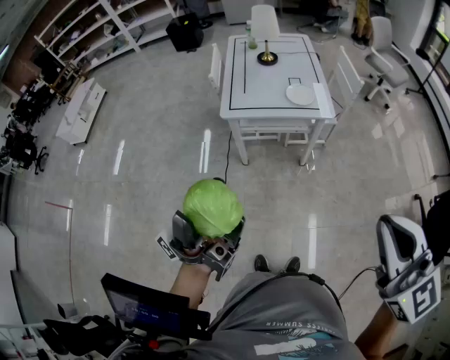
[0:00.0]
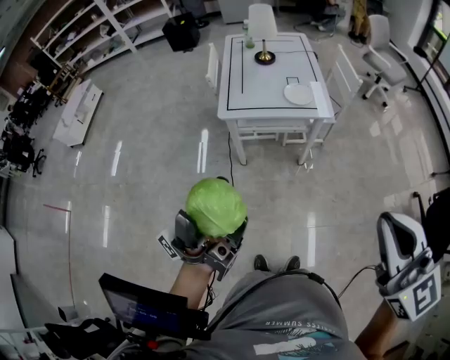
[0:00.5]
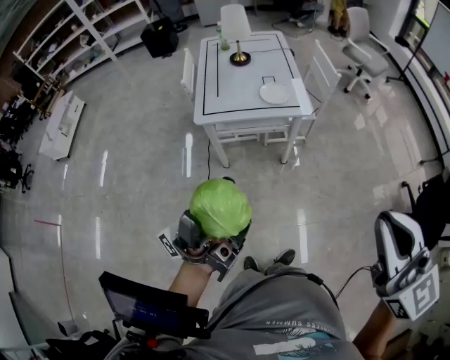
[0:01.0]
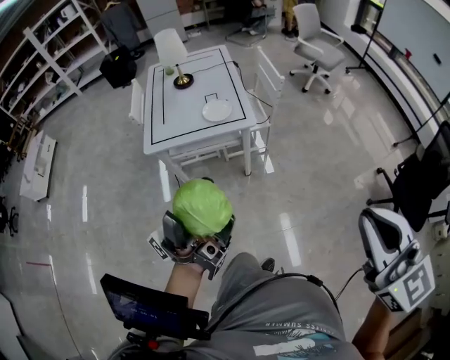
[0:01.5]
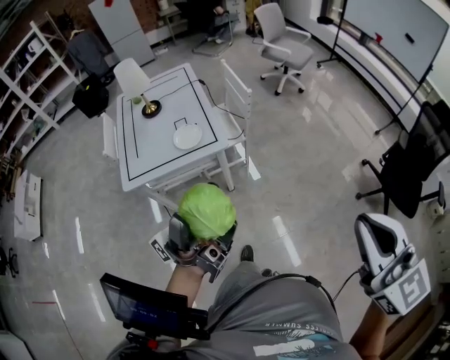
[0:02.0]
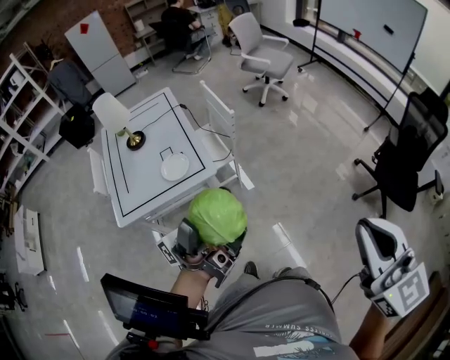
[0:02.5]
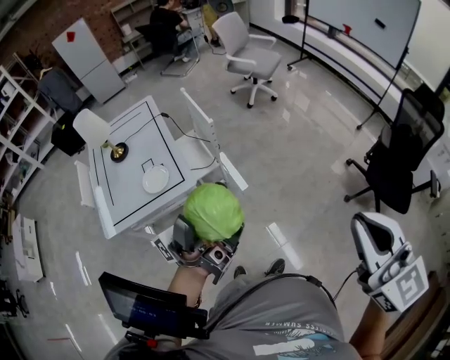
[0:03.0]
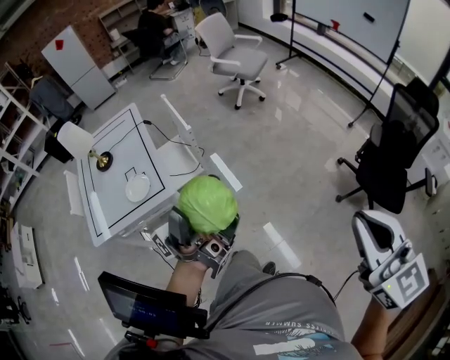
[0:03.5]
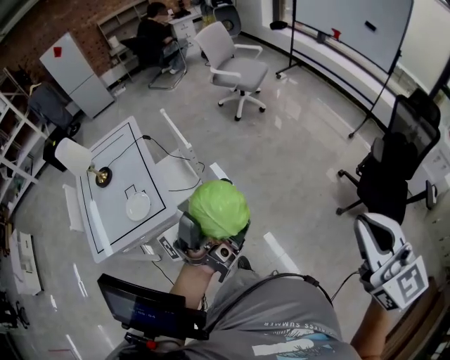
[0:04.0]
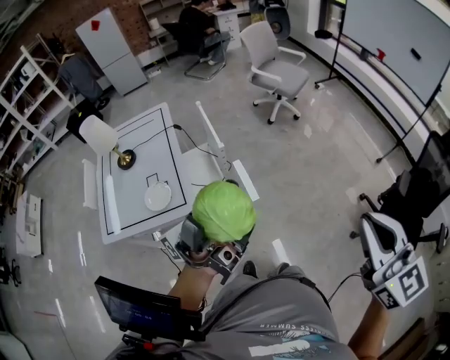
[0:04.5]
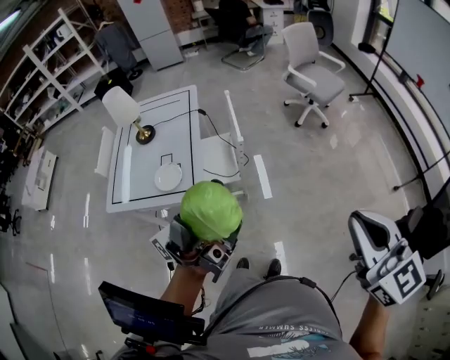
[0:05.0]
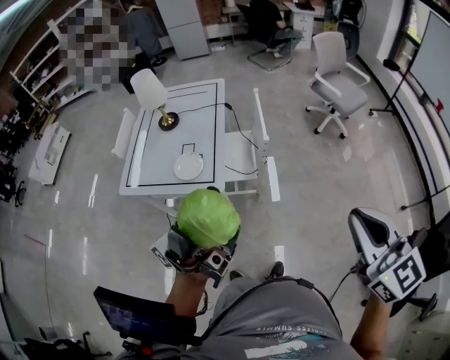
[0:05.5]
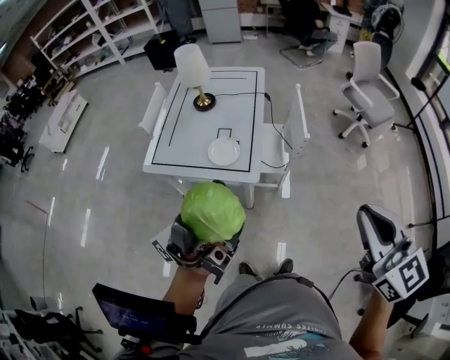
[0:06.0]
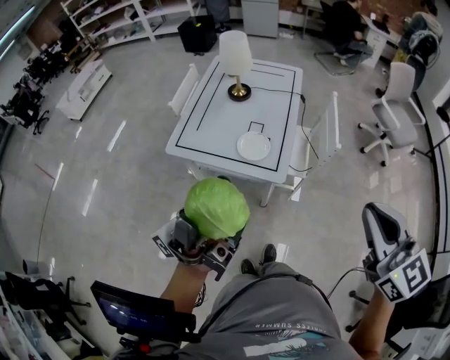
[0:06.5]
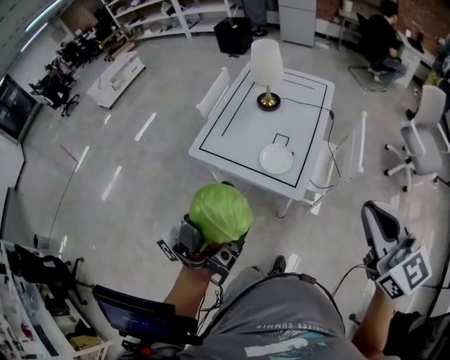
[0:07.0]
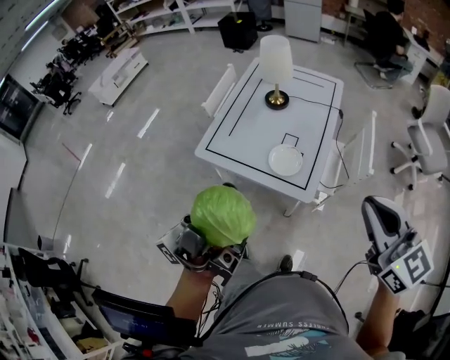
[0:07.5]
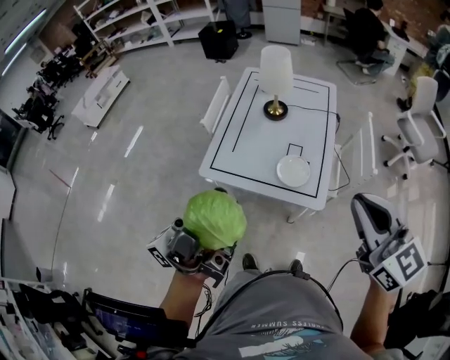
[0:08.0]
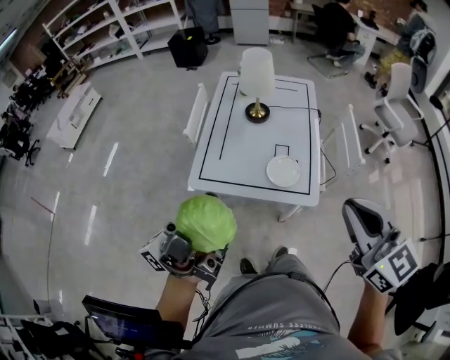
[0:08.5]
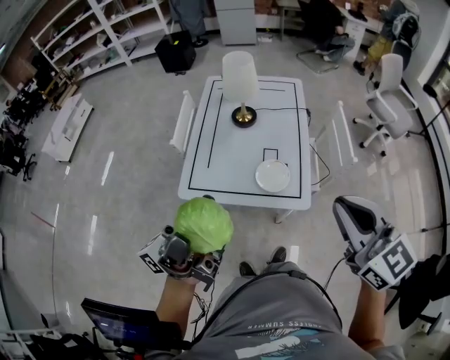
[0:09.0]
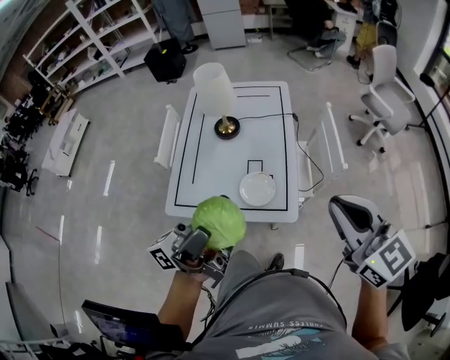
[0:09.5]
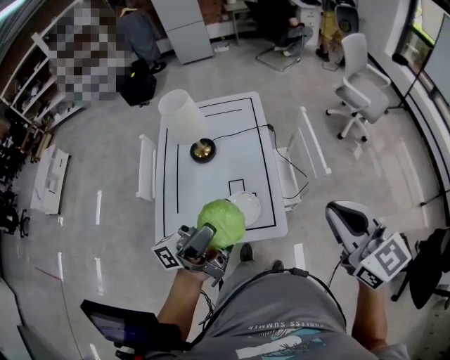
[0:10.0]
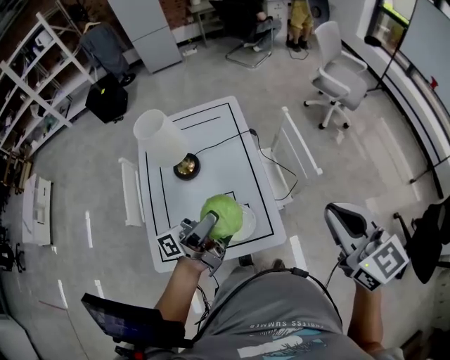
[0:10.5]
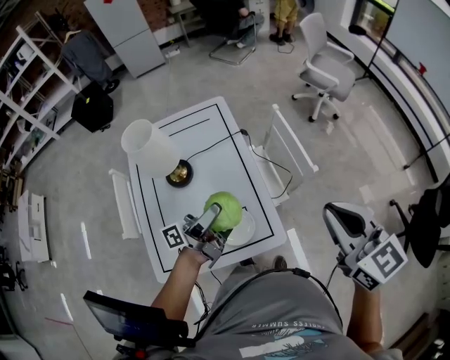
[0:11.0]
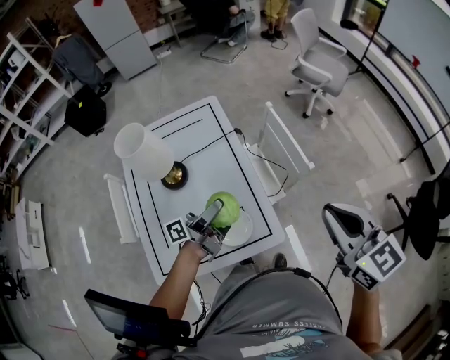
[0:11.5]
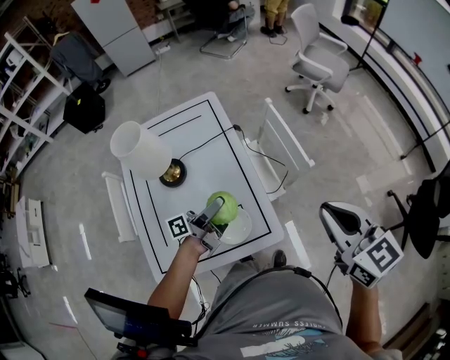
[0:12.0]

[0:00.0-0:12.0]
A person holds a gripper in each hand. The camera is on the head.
0:00.0 to 0:02.0: The right gripper shifts by roughly 25 cm, and changes its angle by some 20 degrees.
0:02.0 to 0:04.0: The right gripper ends up some 30 cm from where it was.
0:04.0 to 0:06.0: The right gripper moves roughly 25 cm, and rotates about 40 degrees.
0:06.0 to 0:08.0: The right gripper shifts by approximately 30 cm.
0:08.0 to 0:10.0: The right gripper shifts by roughly 15 cm.
0:10.0 to 0:12.0: The right gripper ends up approximately 5 cm from where it was, and rotates about 20 degrees.

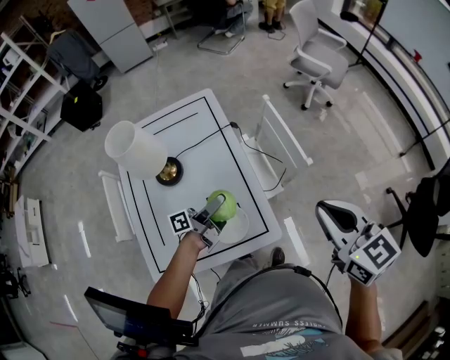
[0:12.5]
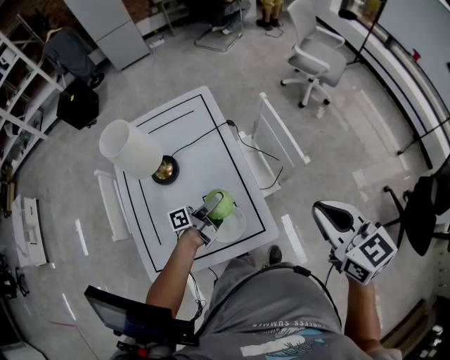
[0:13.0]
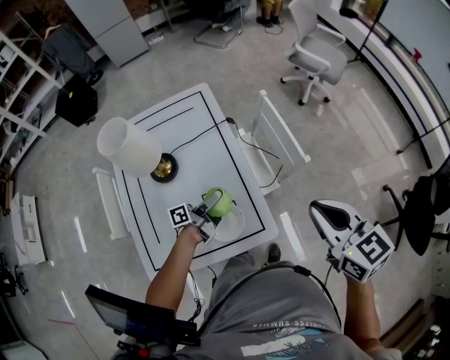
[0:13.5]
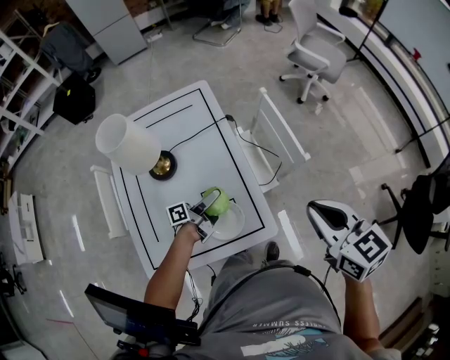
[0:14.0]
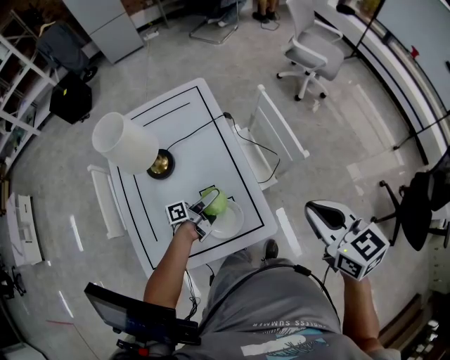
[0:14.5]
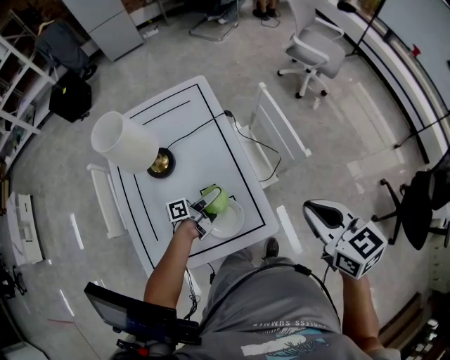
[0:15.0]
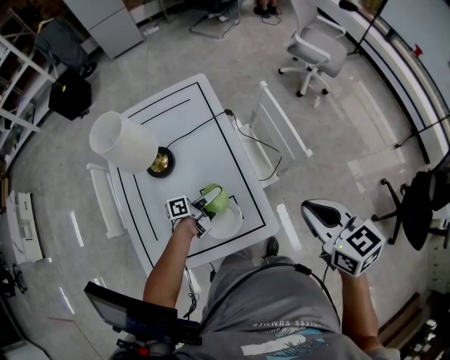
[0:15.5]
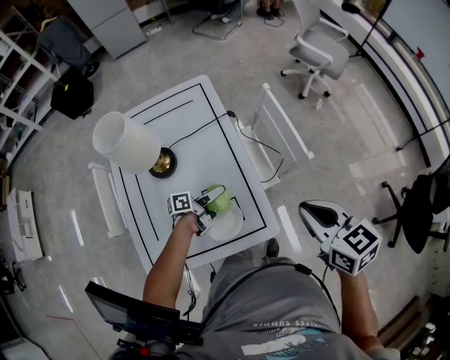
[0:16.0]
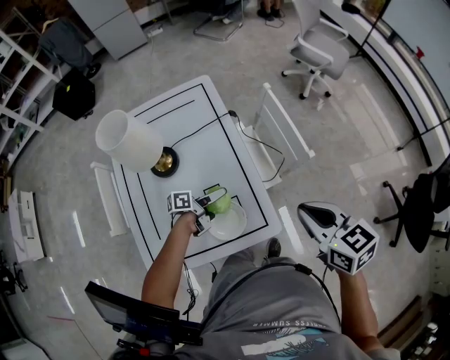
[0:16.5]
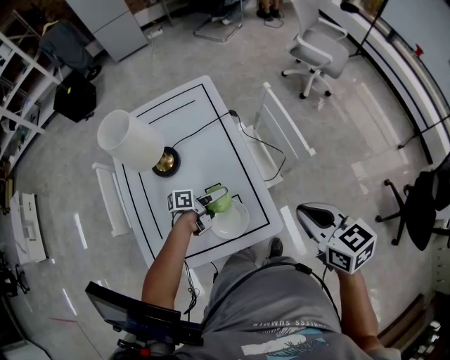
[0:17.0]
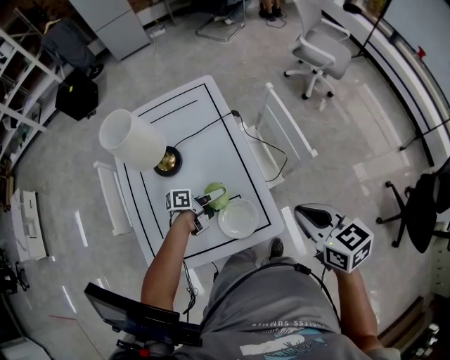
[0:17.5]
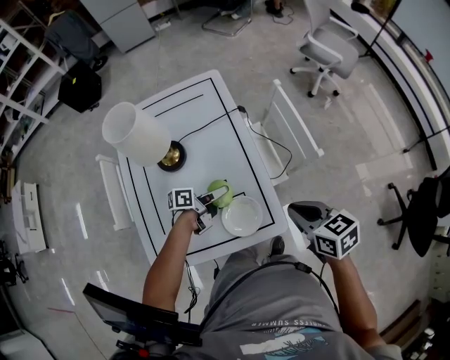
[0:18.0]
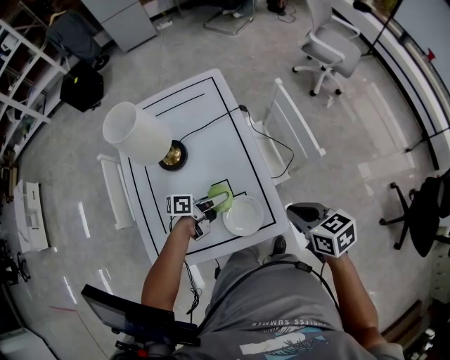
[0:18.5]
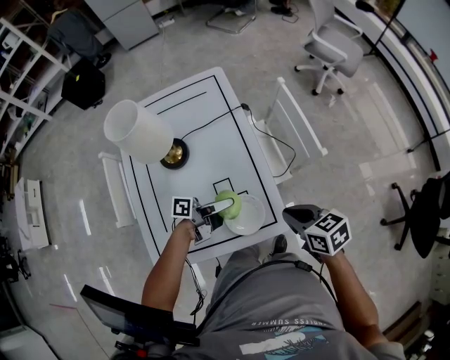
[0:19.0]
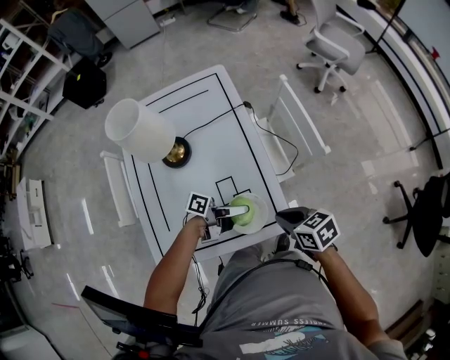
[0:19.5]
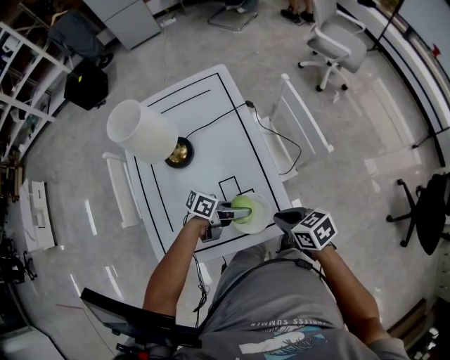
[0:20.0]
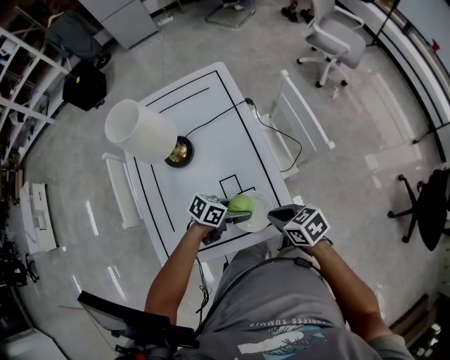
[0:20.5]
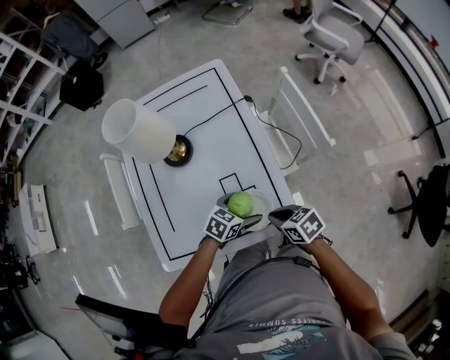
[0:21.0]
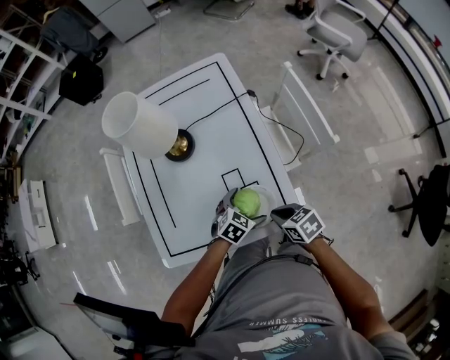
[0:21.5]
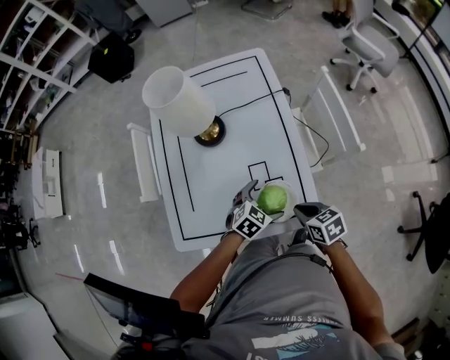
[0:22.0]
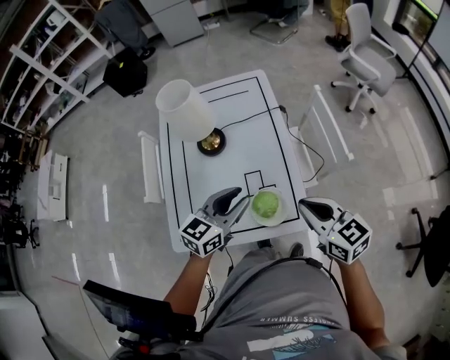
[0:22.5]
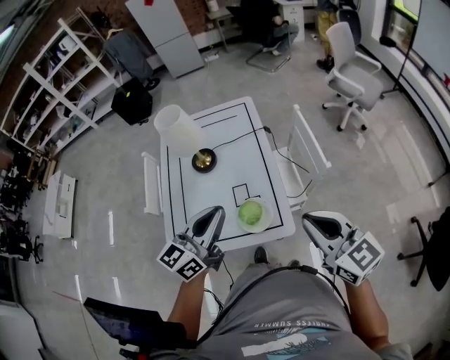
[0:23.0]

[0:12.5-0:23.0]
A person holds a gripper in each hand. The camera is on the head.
0:16.5 to 0:19.0: The right gripper shifts roughly 10 cm downward.
0:19.0 to 0:21.0: The right gripper is displaced downward by roughly 10 cm.
0:21.0 to 0:23.0: The right gripper heads upward, covering about 30 cm, and points its fingers about 40 degrees further upward.

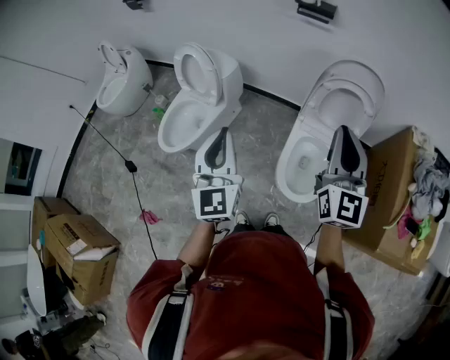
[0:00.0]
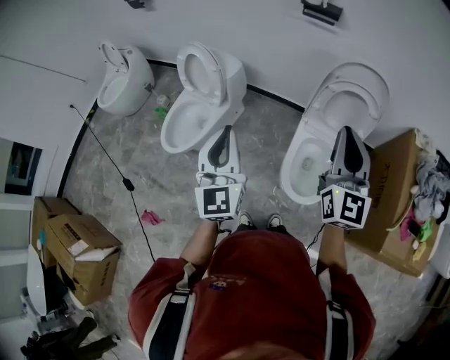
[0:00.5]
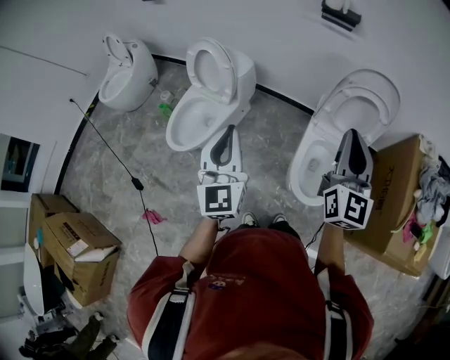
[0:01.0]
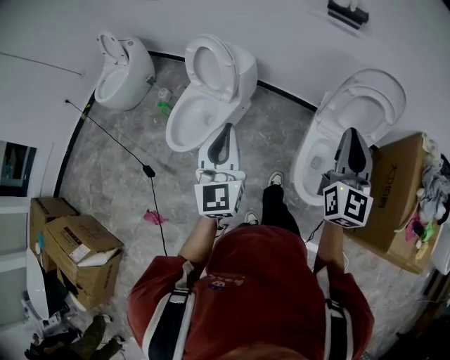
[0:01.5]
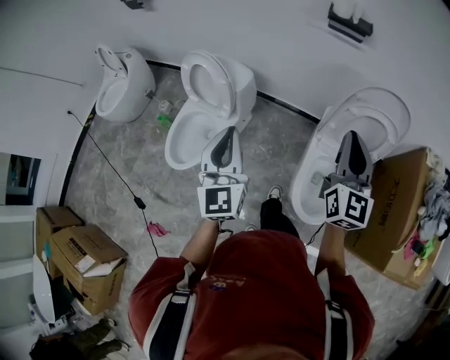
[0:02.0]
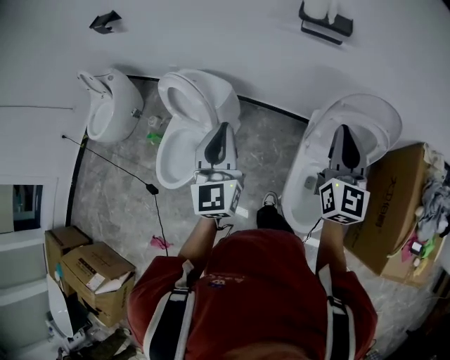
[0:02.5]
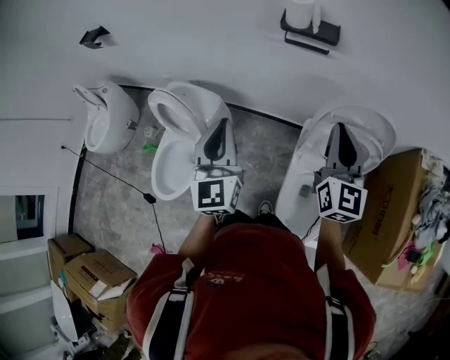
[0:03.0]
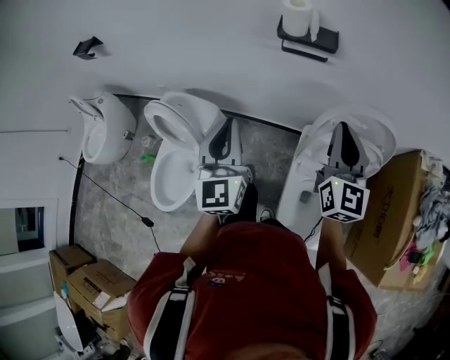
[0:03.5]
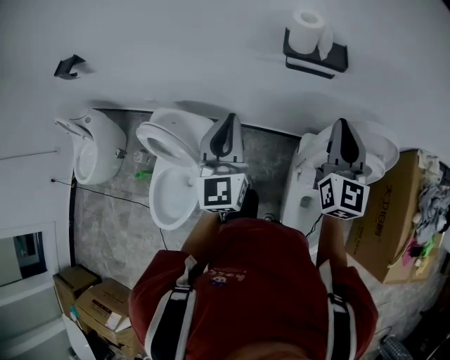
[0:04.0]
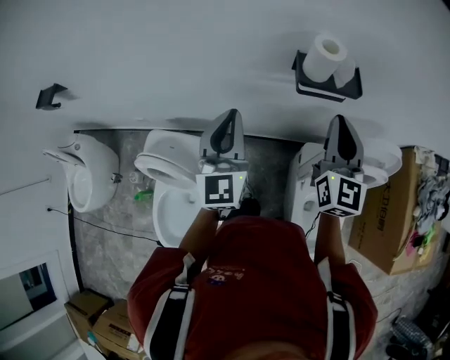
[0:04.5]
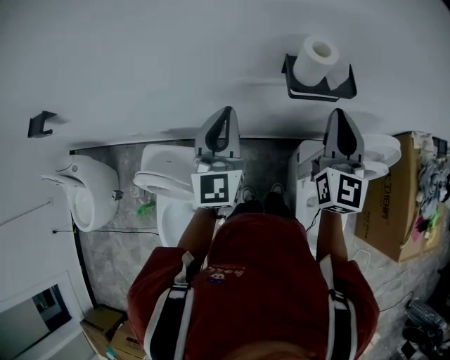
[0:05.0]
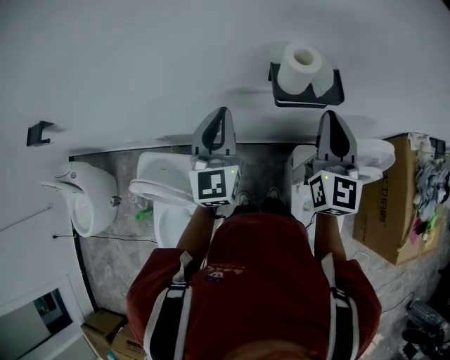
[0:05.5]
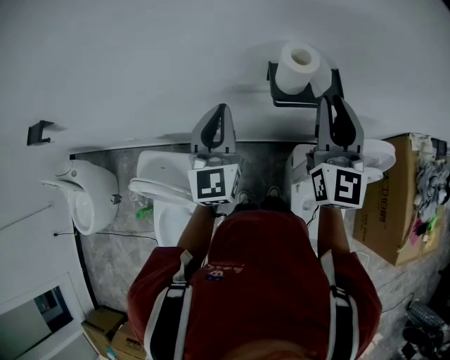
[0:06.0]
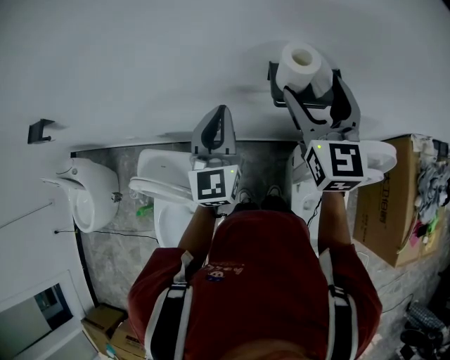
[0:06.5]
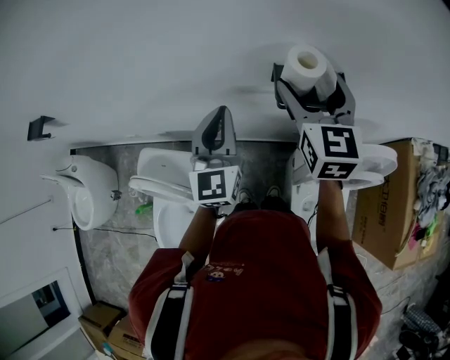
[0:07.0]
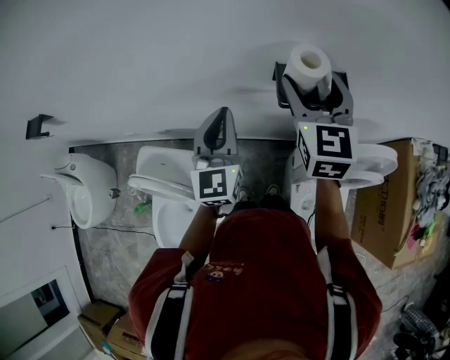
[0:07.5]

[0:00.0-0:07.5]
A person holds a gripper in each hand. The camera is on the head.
0:00.0 to 0:02.0: The grippers both shift forward and to the left by approximately 20 cm.
0:02.0 to 0:04.0: The grippers both shift forward by roughly 35 cm.
0:04.0 to 0:05.5: The grippers both shift forward by about 15 cm.
0:05.5 to 0:07.5: The right gripper travels forward and to the left by roughly 10 cm, and opens up.
